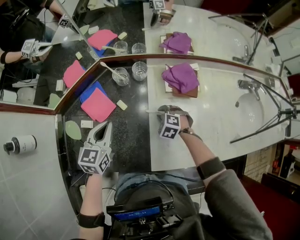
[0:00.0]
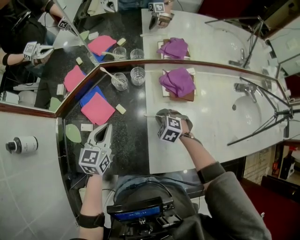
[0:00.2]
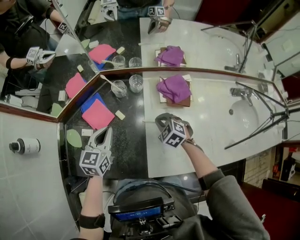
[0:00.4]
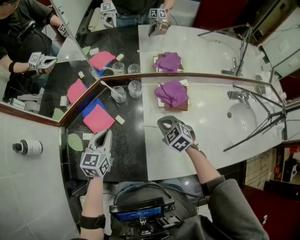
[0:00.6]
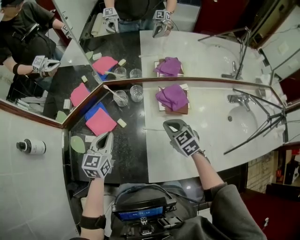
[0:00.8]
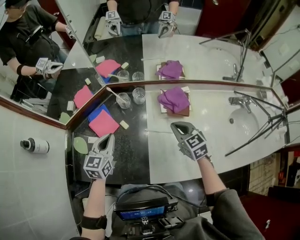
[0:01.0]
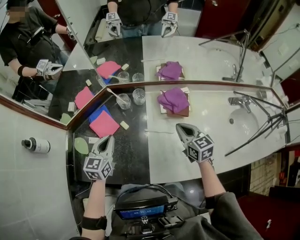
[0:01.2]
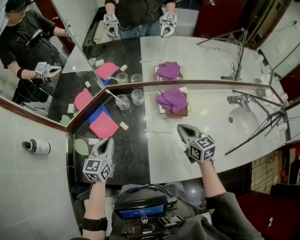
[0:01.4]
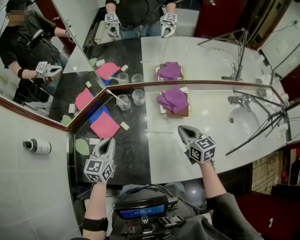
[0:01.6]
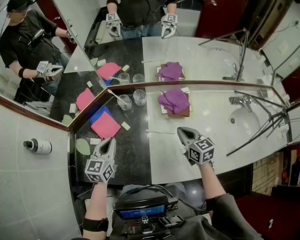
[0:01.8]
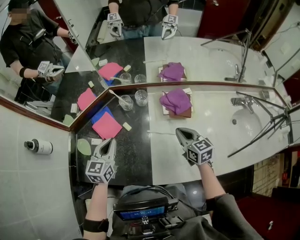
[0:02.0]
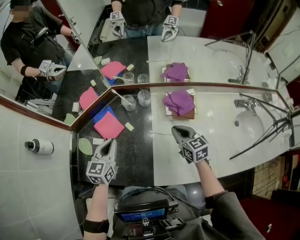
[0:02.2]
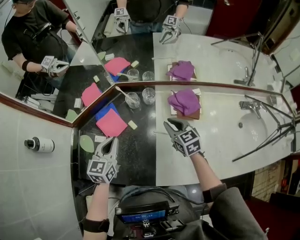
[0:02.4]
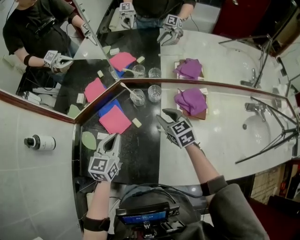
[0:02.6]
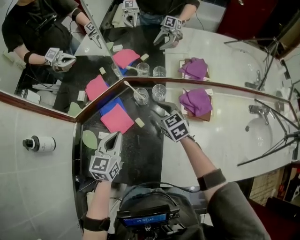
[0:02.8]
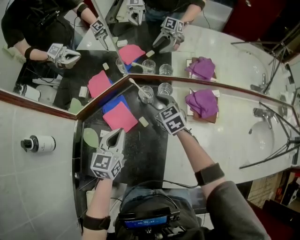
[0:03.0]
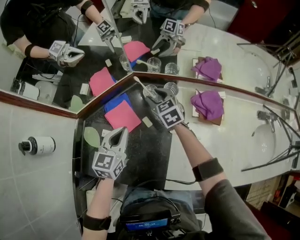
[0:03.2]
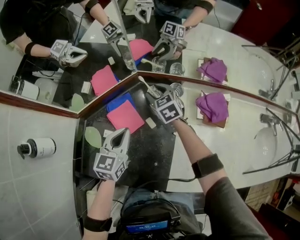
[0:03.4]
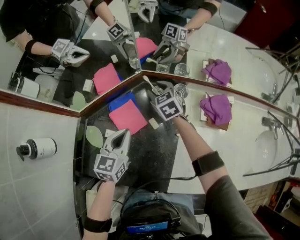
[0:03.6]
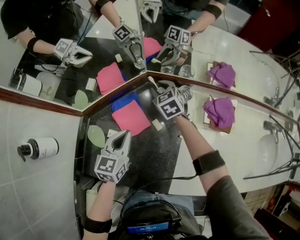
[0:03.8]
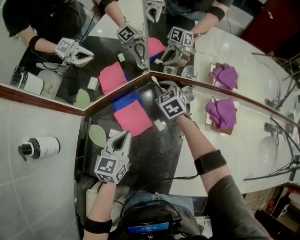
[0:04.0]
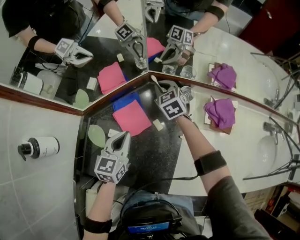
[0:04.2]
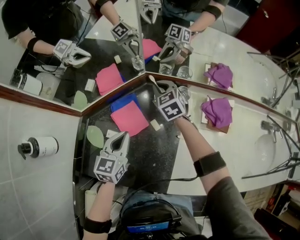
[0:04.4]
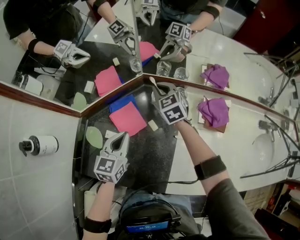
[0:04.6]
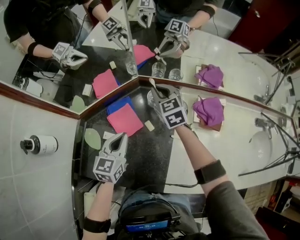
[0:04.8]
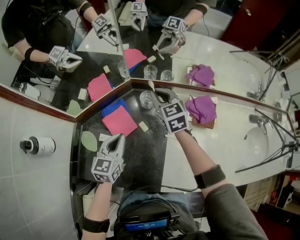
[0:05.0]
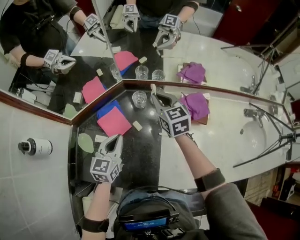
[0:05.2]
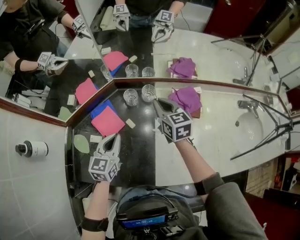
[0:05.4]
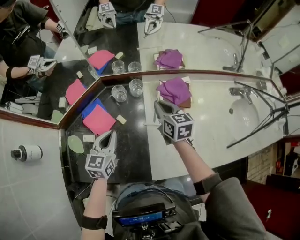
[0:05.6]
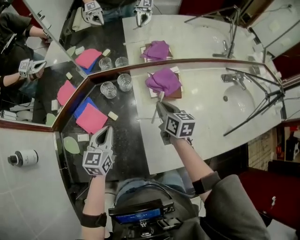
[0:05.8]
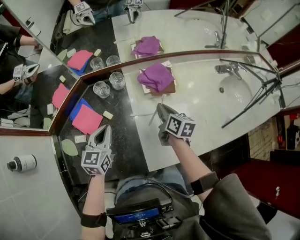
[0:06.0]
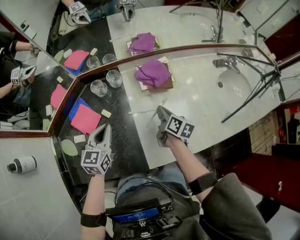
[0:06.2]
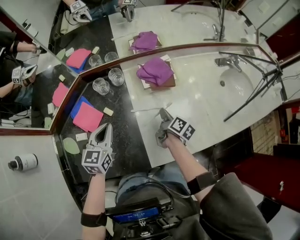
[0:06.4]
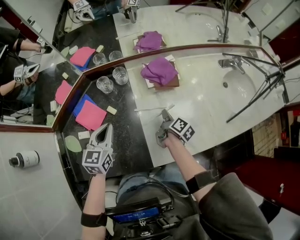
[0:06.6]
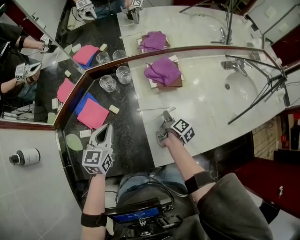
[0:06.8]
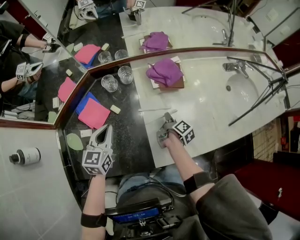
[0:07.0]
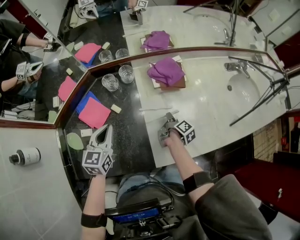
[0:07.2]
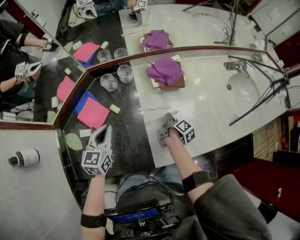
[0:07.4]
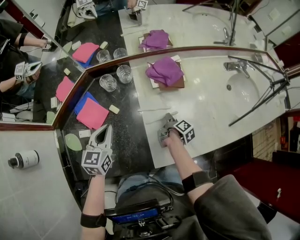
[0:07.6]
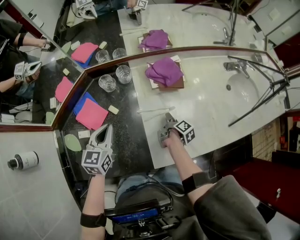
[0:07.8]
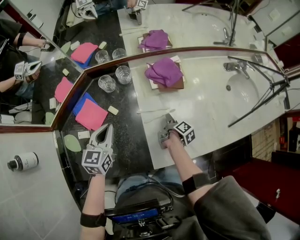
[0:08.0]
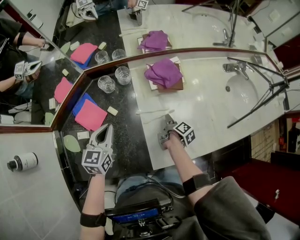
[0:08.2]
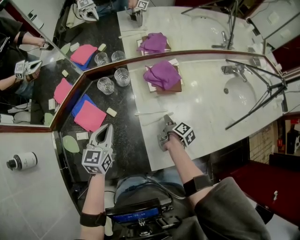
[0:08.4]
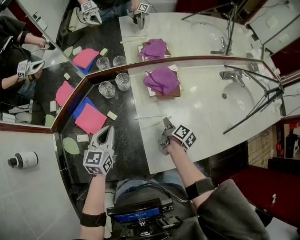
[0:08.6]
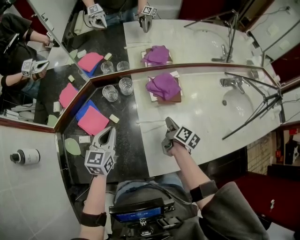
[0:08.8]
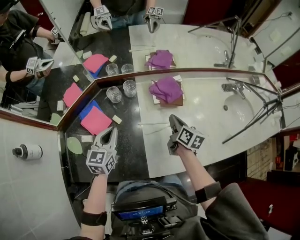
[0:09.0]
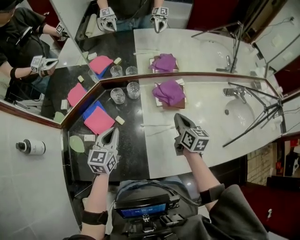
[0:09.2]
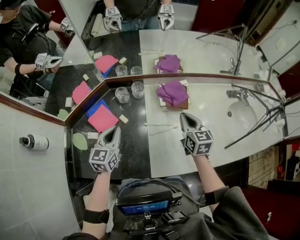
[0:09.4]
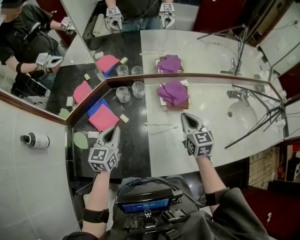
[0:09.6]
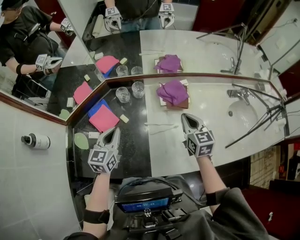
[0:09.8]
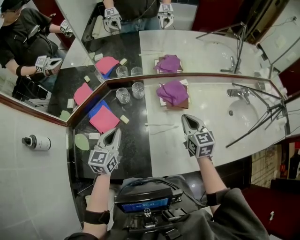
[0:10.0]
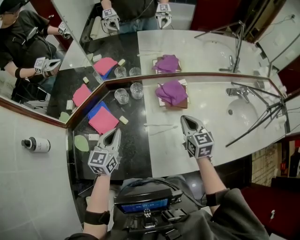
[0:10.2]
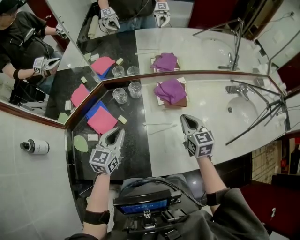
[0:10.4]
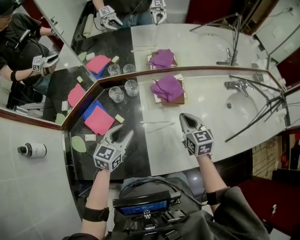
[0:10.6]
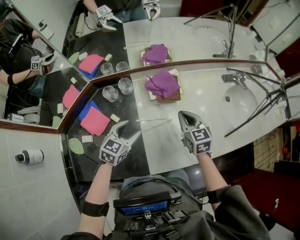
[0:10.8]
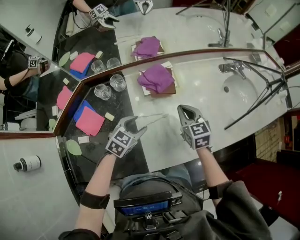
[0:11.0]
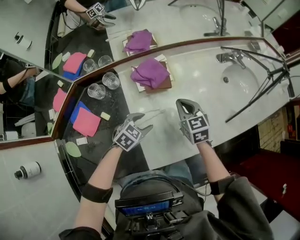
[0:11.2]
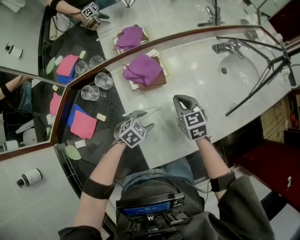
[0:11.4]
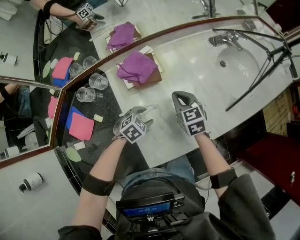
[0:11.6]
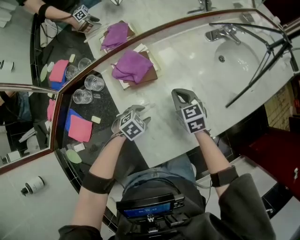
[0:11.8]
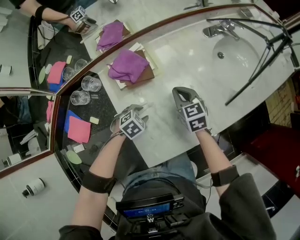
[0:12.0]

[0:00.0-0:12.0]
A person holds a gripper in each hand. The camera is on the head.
0:00.0 to 0:01.6: The left gripper heads upward, covering about 5 cm, while the right gripper moves upward and to the right, about 25 cm, angles its fingers upward, by approximately 40 degrees, and closes up.
0:01.6 to 0:03.0: The right gripper goes approximately 30 cm to the left and forward, changes its angle by approximately 30 degrees, and opens; the left gripper is displaced forward by approximately 5 cm.
0:03.0 to 0:04.4: The left gripper moves some 5 cm; the right gripper moves forward and to the left, roughly 10 cm, and closes.
0:04.4 to 0:06.0: The left gripper shifts some 15 cm to the right. Meanwhile the right gripper moves to the right and backward, some 40 cm, and rotates around the line of its fingers by approximately 70 degrees, clockwise from behind.
0:06.0 to 0:07.6: The right gripper is displaced downward and backward by roughly 15 cm, and rolls clockwise, seen from behind, by about 50 degrees.
0:07.6 to 0:09.0: The right gripper travels upward by roughly 20 cm, and rotates around the line of its fingers by about 50 degrees, counterclockwise from behind.
0:09.0 to 0:10.4: The right gripper goes some 5 cm upward, and changes its angle by roughly 40 degrees.
0:10.4 to 0:12.0: The left gripper ends up roughly 35 cm from where it was, tips its fingers downward by roughly 50 degrees, and opens; the right gripper changes place by approximately 20 cm.

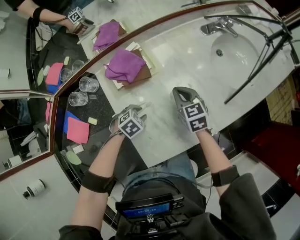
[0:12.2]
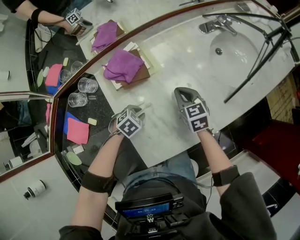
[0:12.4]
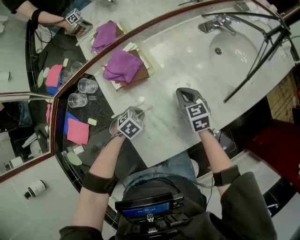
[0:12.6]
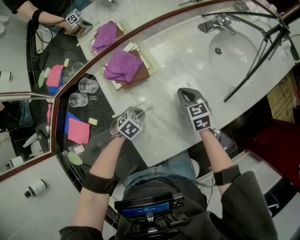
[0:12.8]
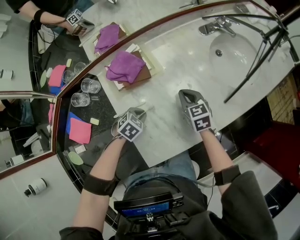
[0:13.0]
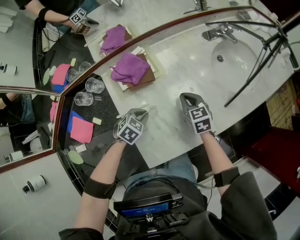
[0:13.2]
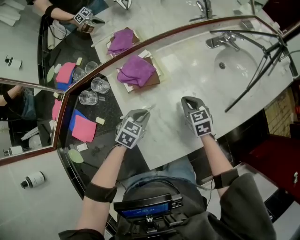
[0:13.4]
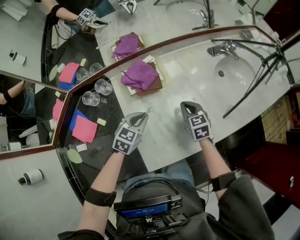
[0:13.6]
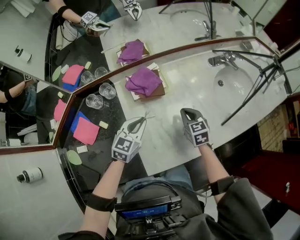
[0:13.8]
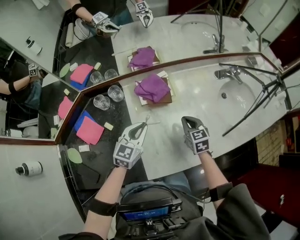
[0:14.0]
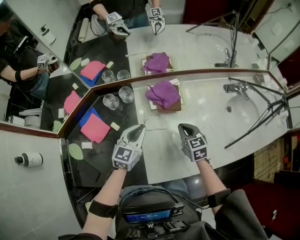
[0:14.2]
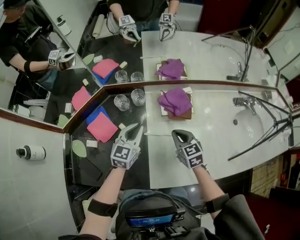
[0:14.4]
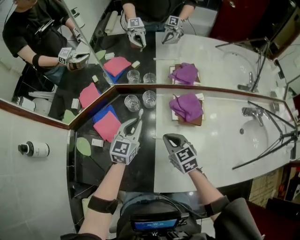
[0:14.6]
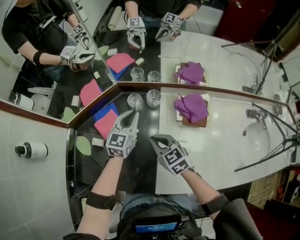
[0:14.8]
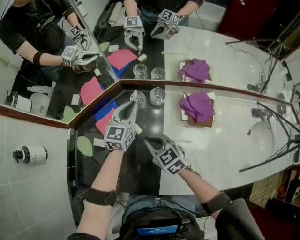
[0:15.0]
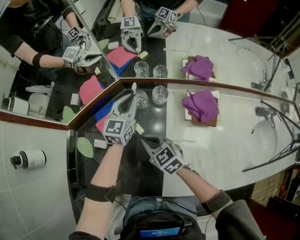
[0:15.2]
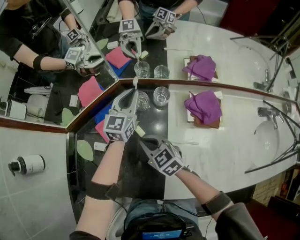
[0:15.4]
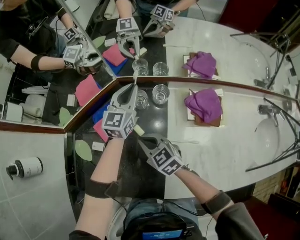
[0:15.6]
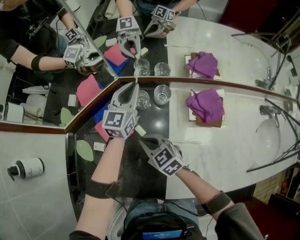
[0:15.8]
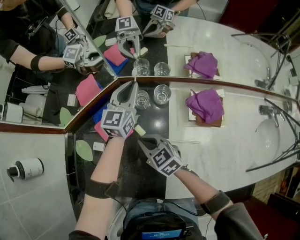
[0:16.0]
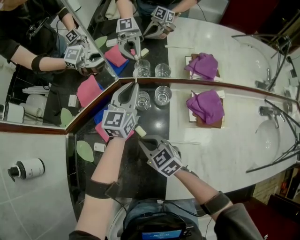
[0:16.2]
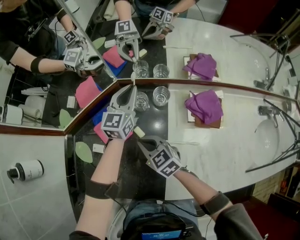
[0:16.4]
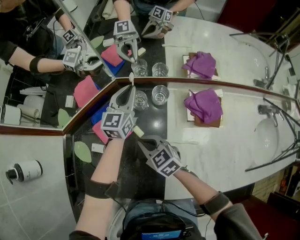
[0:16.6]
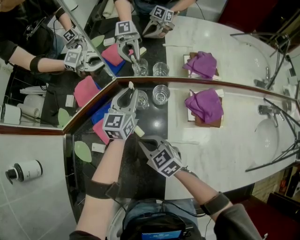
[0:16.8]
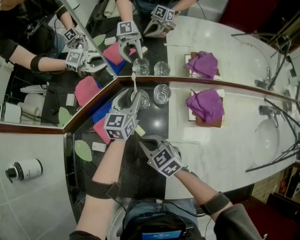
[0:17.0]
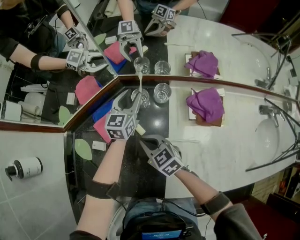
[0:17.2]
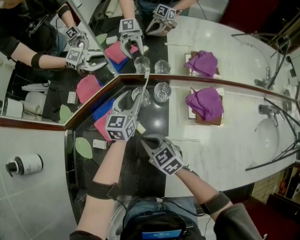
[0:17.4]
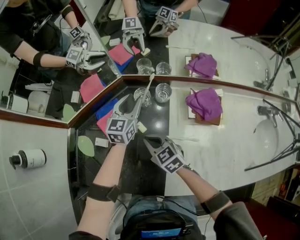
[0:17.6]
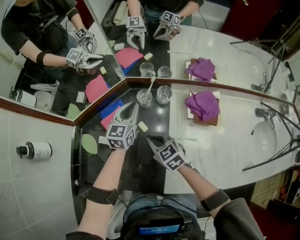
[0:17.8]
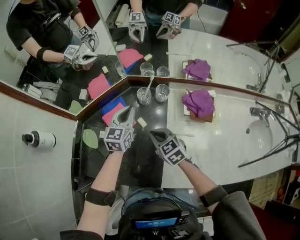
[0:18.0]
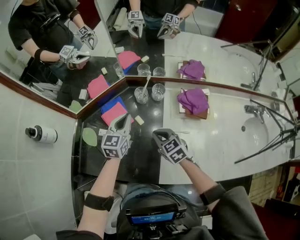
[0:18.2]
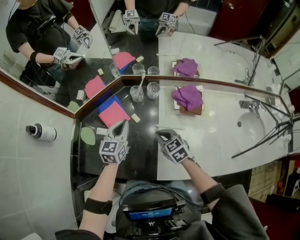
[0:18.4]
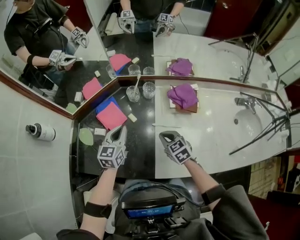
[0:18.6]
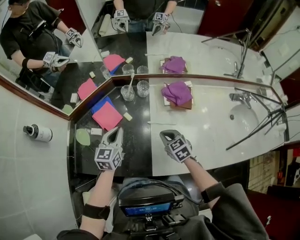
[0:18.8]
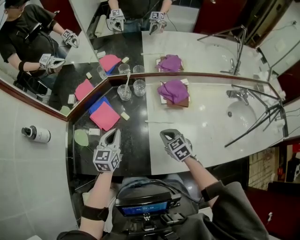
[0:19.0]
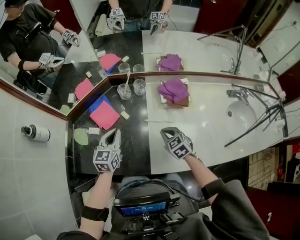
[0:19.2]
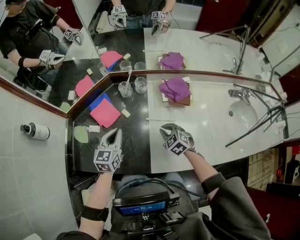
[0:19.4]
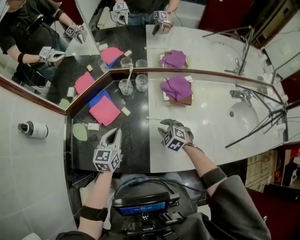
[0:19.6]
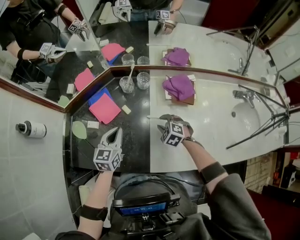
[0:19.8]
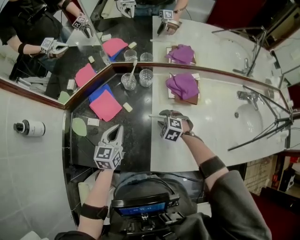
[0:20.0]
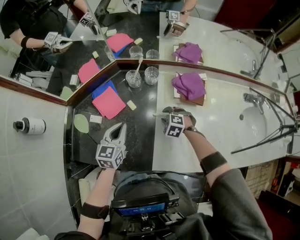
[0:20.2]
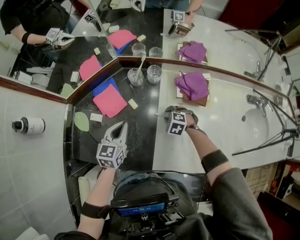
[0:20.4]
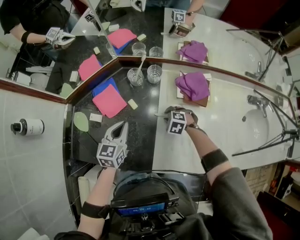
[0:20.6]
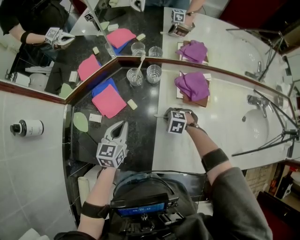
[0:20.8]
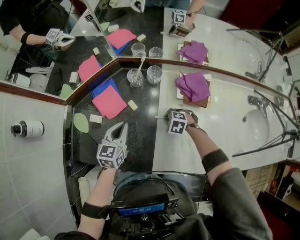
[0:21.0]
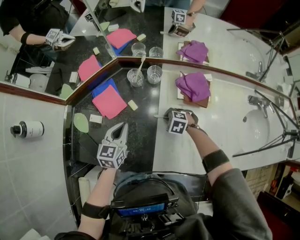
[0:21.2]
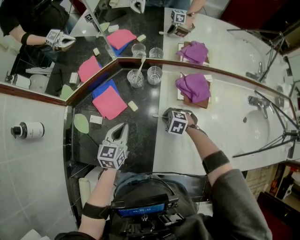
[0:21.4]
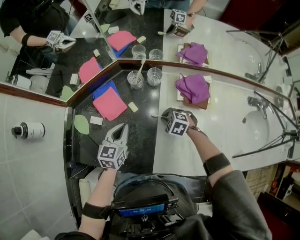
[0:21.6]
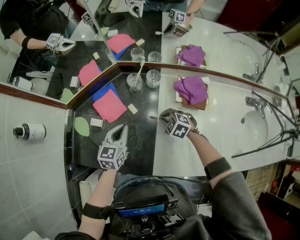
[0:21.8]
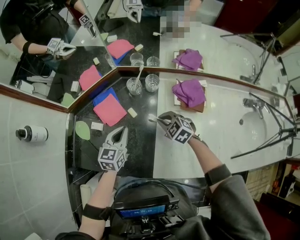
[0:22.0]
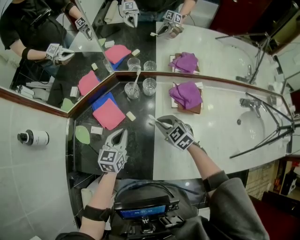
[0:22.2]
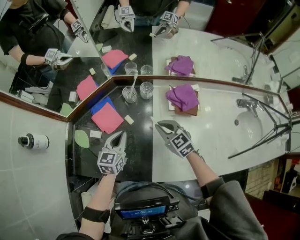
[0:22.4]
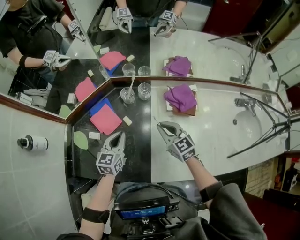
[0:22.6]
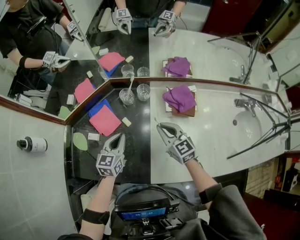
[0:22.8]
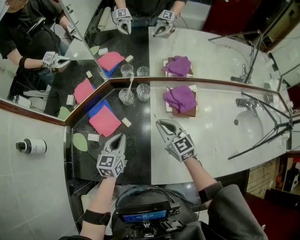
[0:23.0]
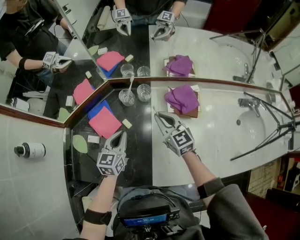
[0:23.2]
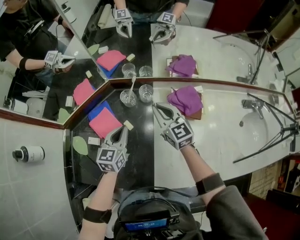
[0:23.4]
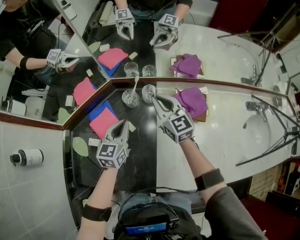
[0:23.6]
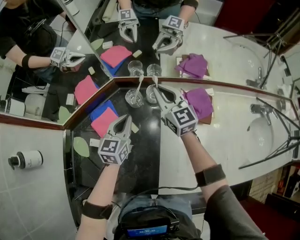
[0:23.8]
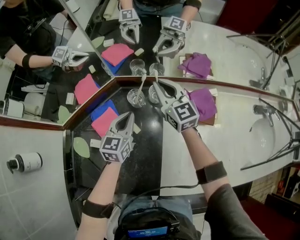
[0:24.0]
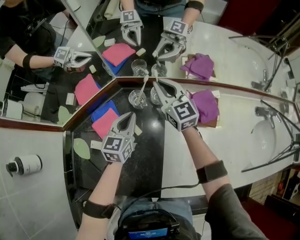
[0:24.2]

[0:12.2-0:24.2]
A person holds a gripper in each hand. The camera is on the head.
0:12.2 to 0:13.8: The left gripper heads upward, covering approximately 20 cm, tips its fingers upward by approximately 40 degrees, and closes.
0:13.8 to 0:15.2: The right gripper changes place by some 40 cm, and turns by approximately 50 degrees, while the left gripper changes place by some 35 cm, and rotates some 40 degrees.
0:15.2 to 0:16.6: There are only small adjustments of the grippers.
0:16.6 to 0:18.2: The left gripper moves backward and to the left, approximately 20 cm, and opens, then closes again, while the right gripper goes roughly 10 cm backward and to the right.
0:18.2 to 0:19.8: The left gripper goes some 10 cm backward. The right gripper shifts some 15 cm to the right and downward, changes its angle by roughly 30 degrees, and opens.
0:19.8 to 0:21.2: The right gripper moves downward, roughly 10 cm, swivels about 20 degrees, and closes its fingers.
0:21.2 to 0:22.6: The right gripper travels upward by about 20 cm, and points its fingers about 50 degrees further upward.
0:22.6 to 0:24.2: The left gripper goes some 15 cm forward, while the right gripper is displaced forward by roughly 25 cm.
